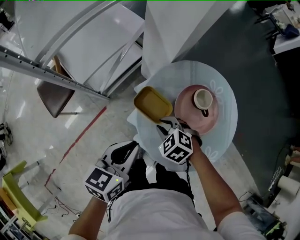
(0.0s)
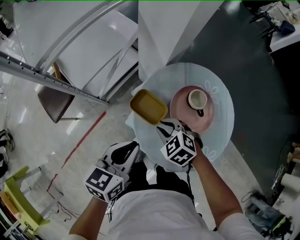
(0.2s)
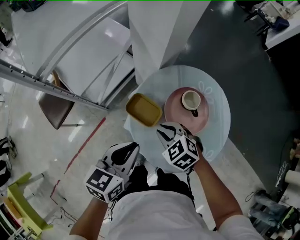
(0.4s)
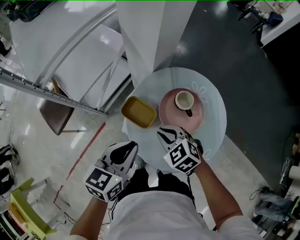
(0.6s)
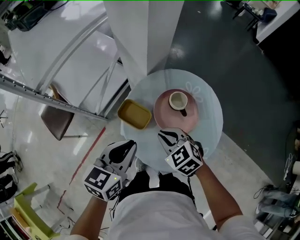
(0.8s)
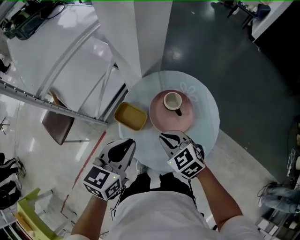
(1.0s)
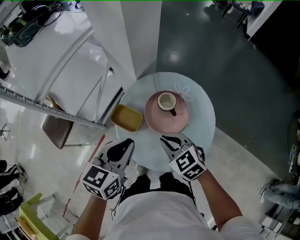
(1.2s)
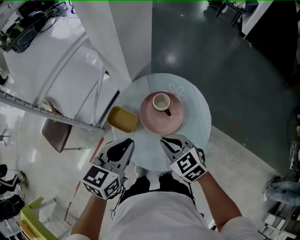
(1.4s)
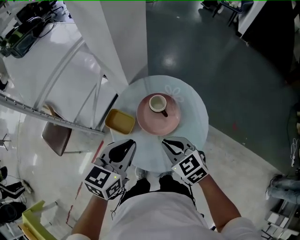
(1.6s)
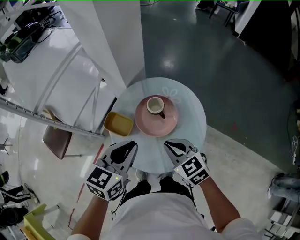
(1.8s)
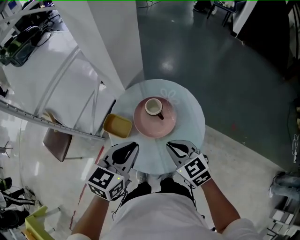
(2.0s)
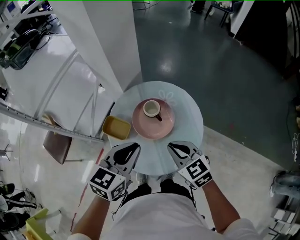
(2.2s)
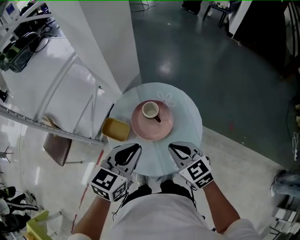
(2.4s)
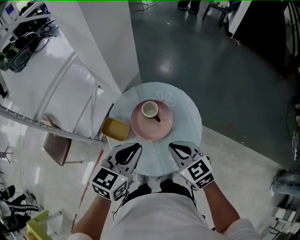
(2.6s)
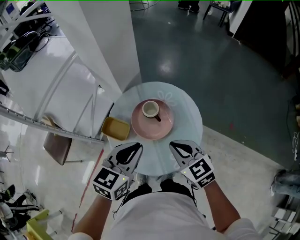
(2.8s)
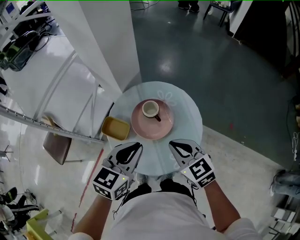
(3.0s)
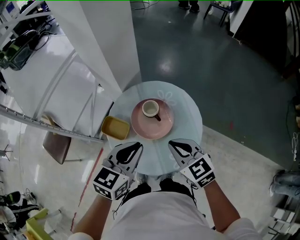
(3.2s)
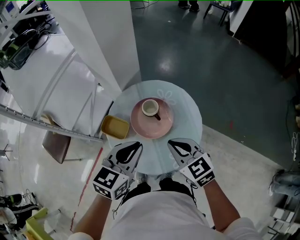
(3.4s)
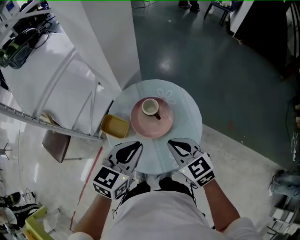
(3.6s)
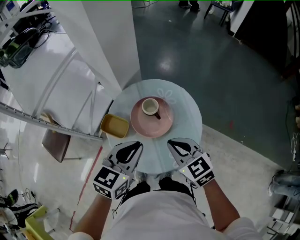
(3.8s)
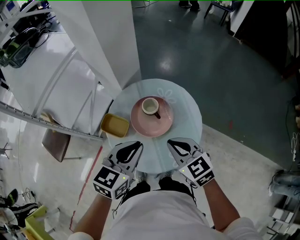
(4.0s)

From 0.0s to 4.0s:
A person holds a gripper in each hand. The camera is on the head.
From 0.0s to 1.4s: The left gripper travels to the right and upward by roughly 20 cm. Meanwhile the right gripper heads to the right, upward and backward, covering roughly 25 cm, and rotates roughly 30 degrees.
From 1.4s to 2.6s: Both grippers travel together to the right, about 10 cm.
From 2.6s to 4.0s: There are only small adjustments of the grippers.

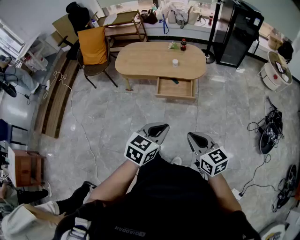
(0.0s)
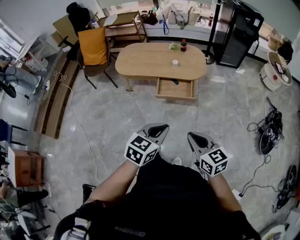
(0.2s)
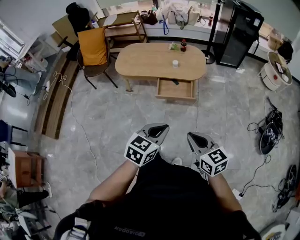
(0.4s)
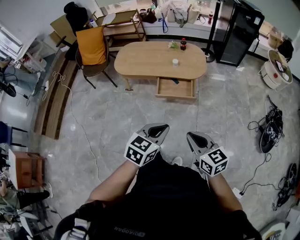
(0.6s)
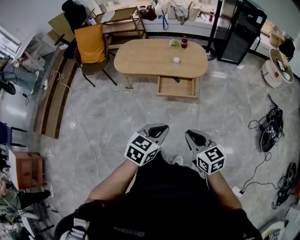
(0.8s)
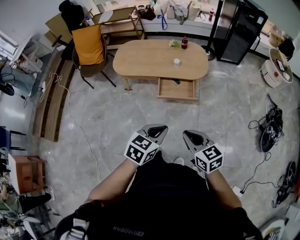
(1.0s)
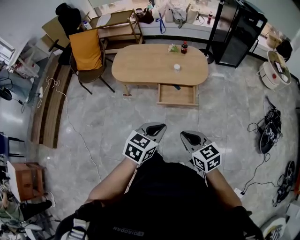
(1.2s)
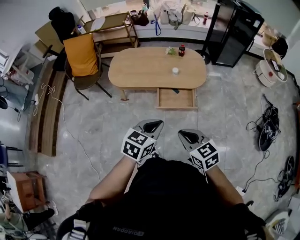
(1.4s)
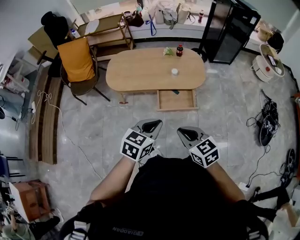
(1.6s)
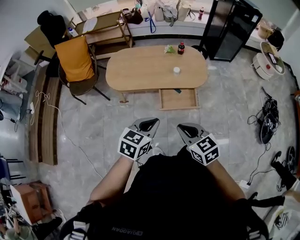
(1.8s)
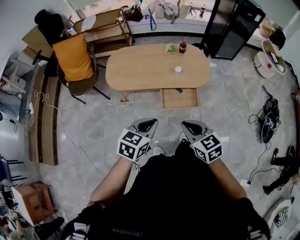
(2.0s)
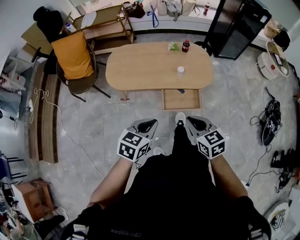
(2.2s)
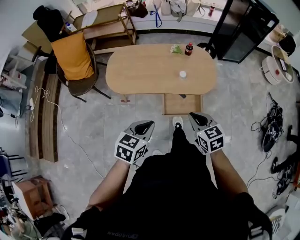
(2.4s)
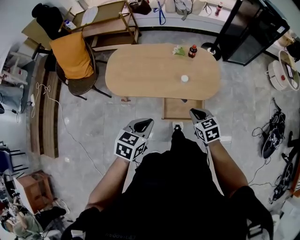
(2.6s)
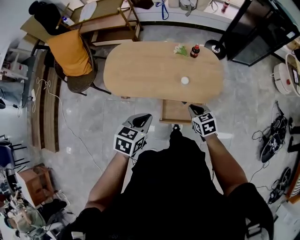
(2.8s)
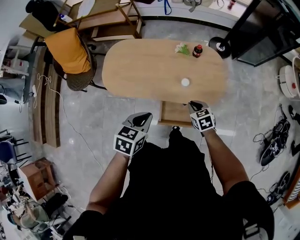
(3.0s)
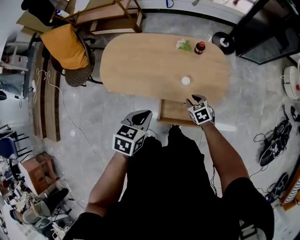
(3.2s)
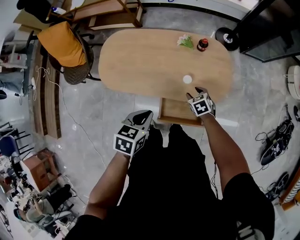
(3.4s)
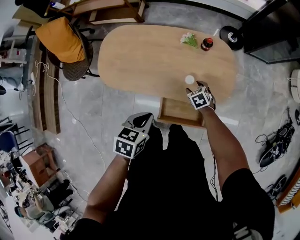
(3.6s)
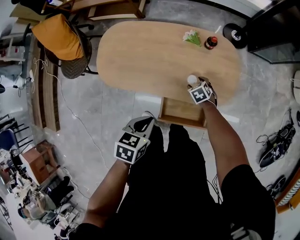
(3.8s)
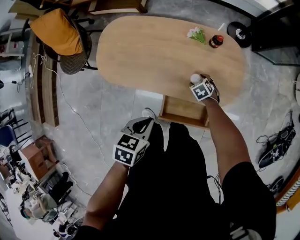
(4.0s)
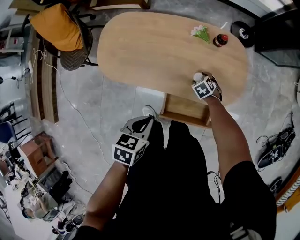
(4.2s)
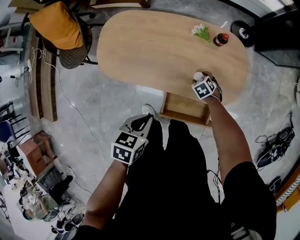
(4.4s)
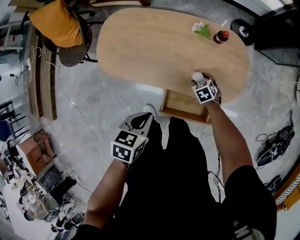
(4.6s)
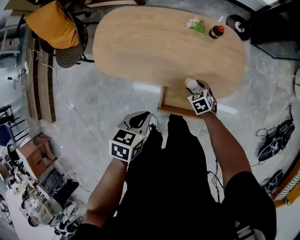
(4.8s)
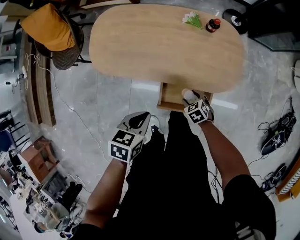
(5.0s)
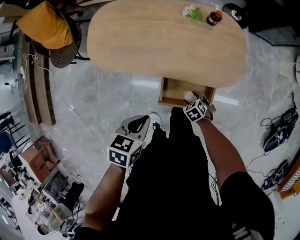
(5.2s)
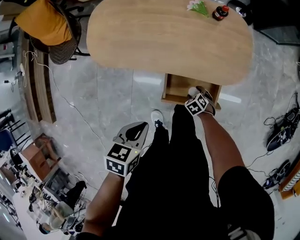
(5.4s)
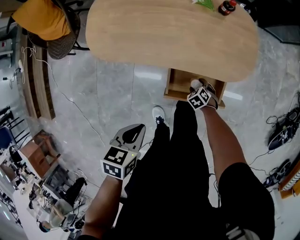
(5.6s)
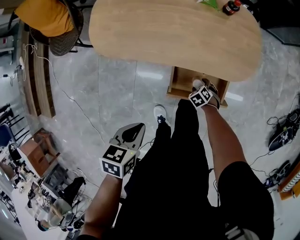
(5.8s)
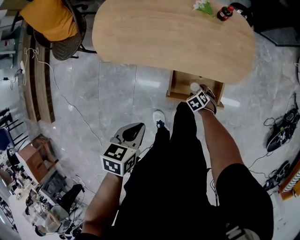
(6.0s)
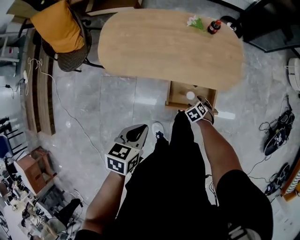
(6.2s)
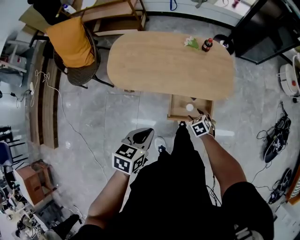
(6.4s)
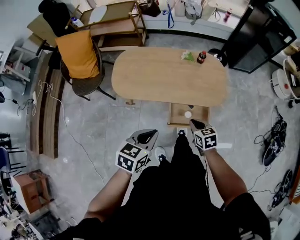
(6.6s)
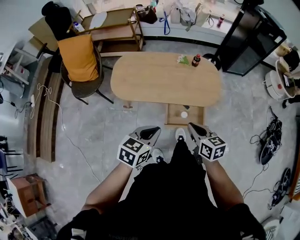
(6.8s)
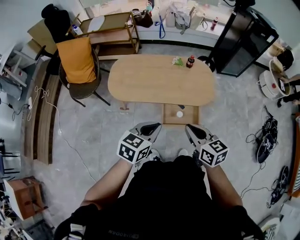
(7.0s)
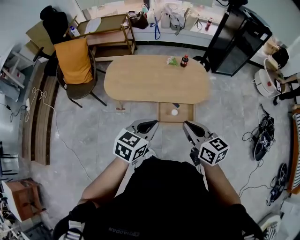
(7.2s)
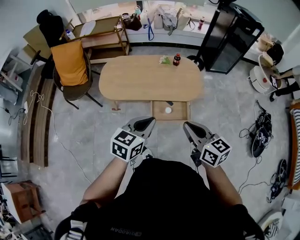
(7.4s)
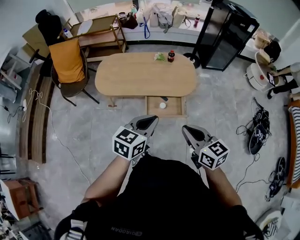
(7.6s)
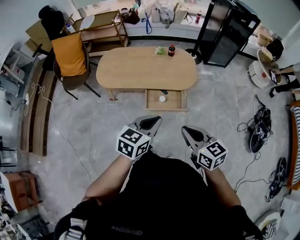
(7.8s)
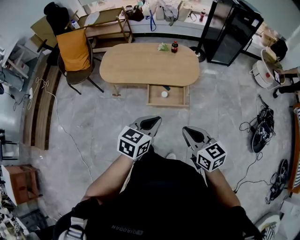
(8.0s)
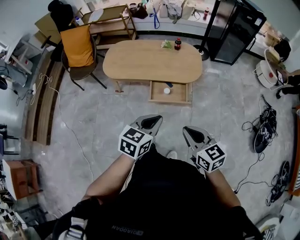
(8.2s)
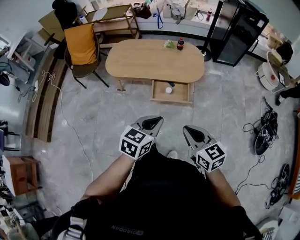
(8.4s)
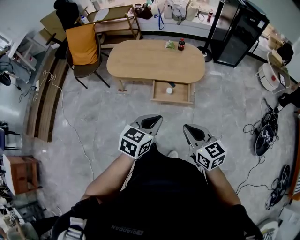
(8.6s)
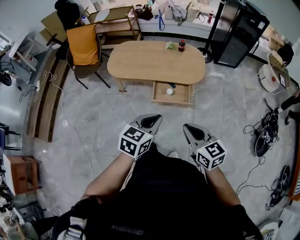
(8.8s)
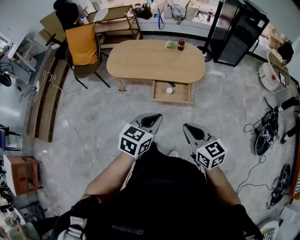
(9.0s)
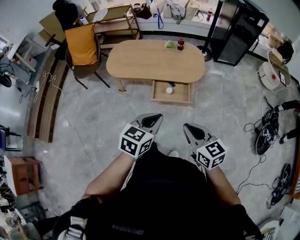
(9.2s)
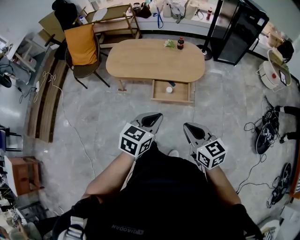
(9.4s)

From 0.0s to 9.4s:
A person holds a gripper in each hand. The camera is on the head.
From 0.0s to 1.6s: The grippers both shift forward and to the left by roughly 25 cm.
From 1.6s to 3.2s: The right gripper moves forward and downward, approximately 50 cm, rotates roughly 30 degrees, and opens up. Meanwhile the left gripper moves forward, roughly 35 cm, and swivels some 20 degrees.
From 3.2s to 4.8s: The grippers both shift downward by approximately 10 cm. The right gripper opens.
From 4.8s to 6.2s: The left gripper moves approximately 15 cm. Meanwhile the right gripper shifts by about 15 cm.
From 6.2s to 7.8s: The left gripper moves approximately 30 cm, and changes its angle by about 30 degrees. Meanwhile the right gripper goes about 50 cm upward, tips its fingers upward by approximately 60 degrees, and closes its fingers.
From 7.8s to 9.4s: Both grippers move backward, roughly 5 cm.

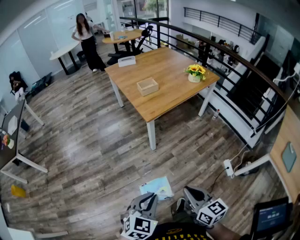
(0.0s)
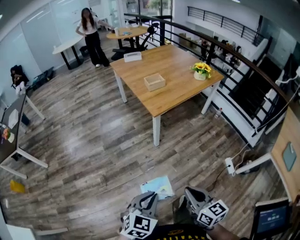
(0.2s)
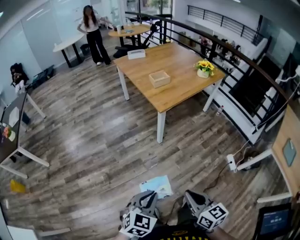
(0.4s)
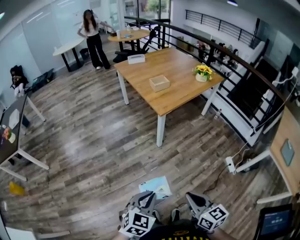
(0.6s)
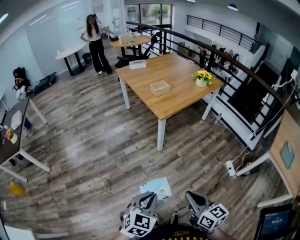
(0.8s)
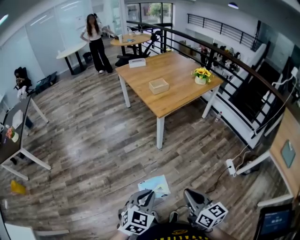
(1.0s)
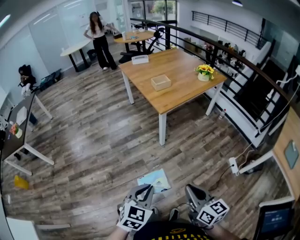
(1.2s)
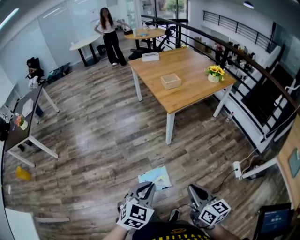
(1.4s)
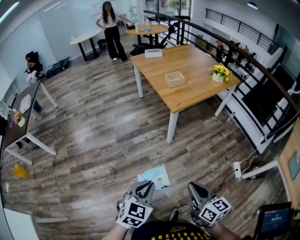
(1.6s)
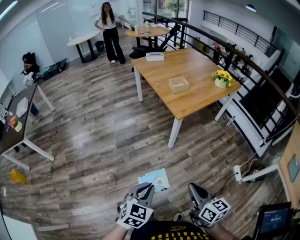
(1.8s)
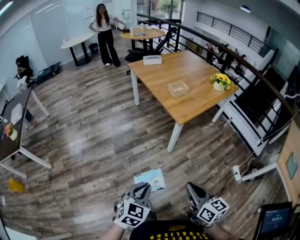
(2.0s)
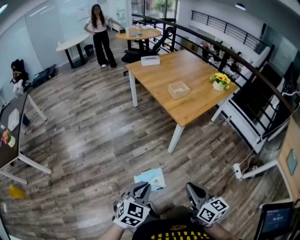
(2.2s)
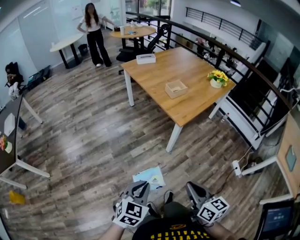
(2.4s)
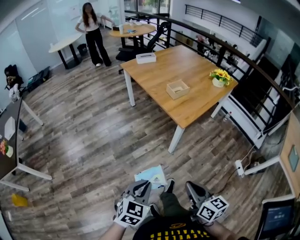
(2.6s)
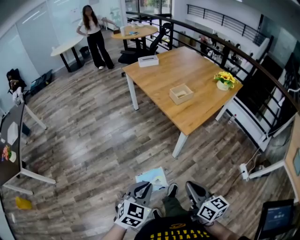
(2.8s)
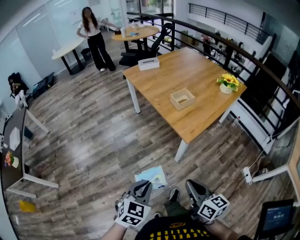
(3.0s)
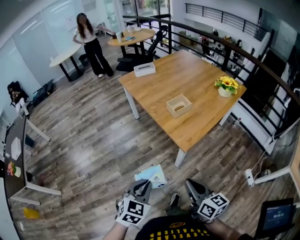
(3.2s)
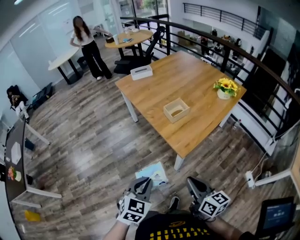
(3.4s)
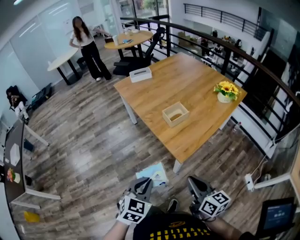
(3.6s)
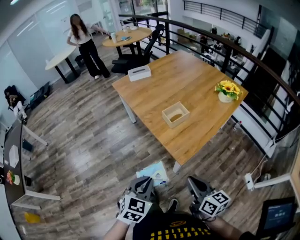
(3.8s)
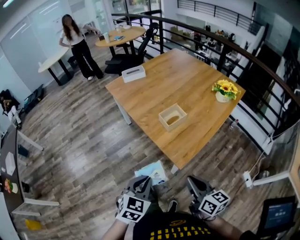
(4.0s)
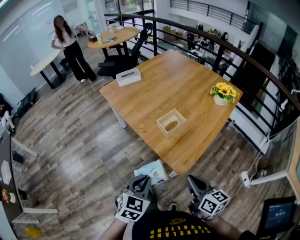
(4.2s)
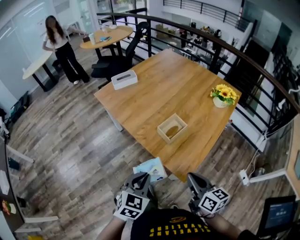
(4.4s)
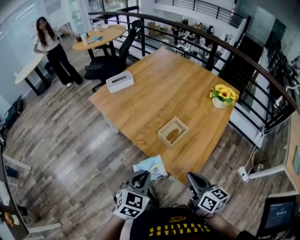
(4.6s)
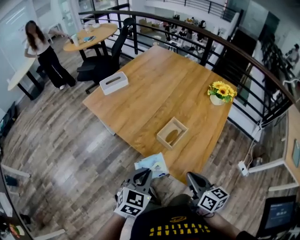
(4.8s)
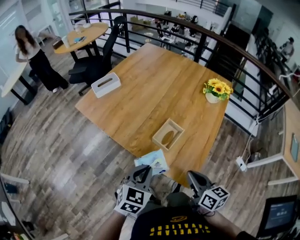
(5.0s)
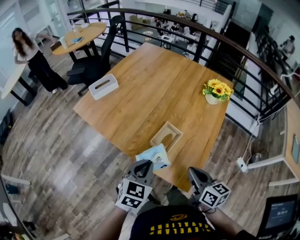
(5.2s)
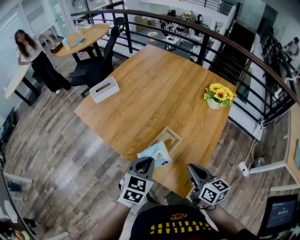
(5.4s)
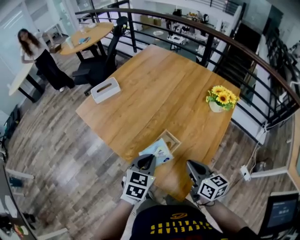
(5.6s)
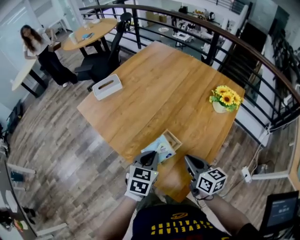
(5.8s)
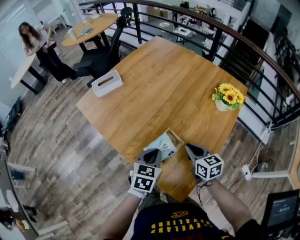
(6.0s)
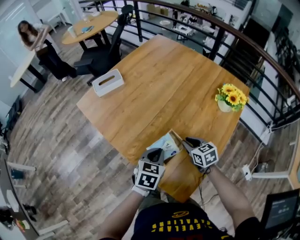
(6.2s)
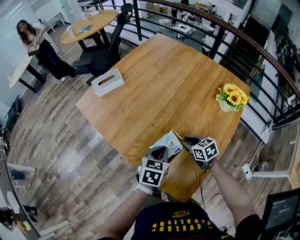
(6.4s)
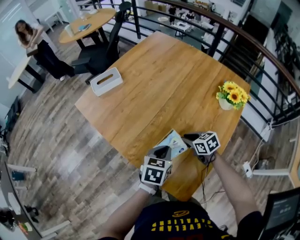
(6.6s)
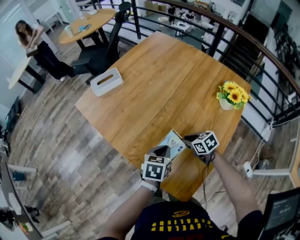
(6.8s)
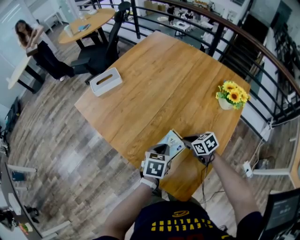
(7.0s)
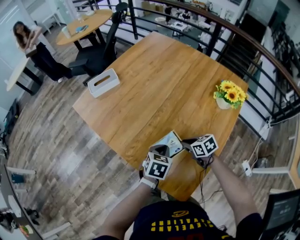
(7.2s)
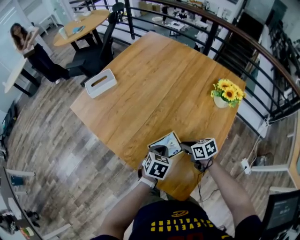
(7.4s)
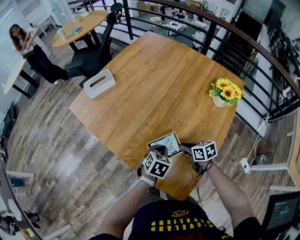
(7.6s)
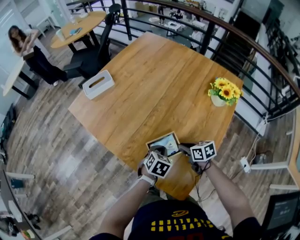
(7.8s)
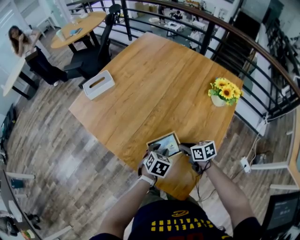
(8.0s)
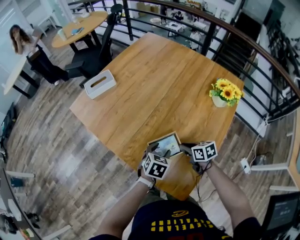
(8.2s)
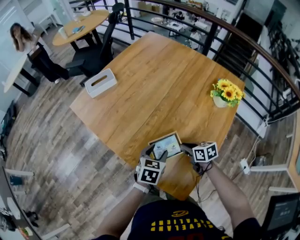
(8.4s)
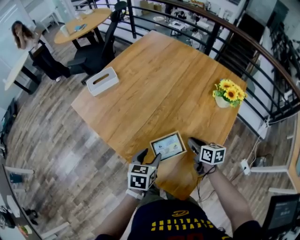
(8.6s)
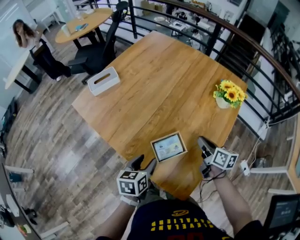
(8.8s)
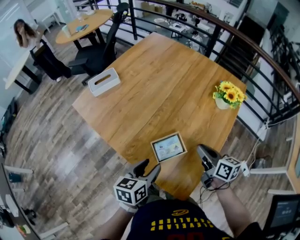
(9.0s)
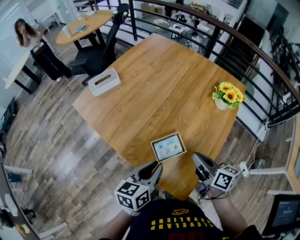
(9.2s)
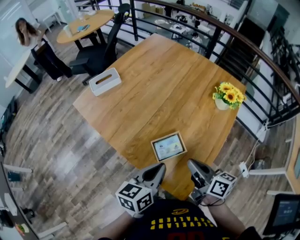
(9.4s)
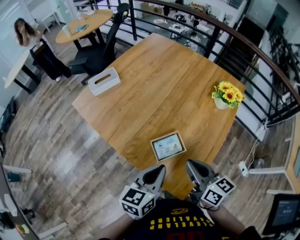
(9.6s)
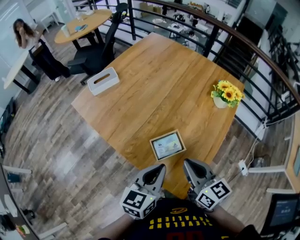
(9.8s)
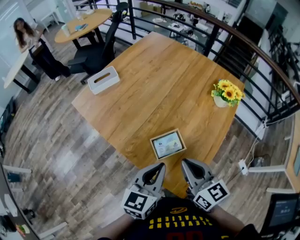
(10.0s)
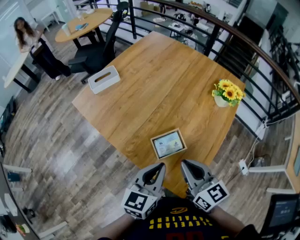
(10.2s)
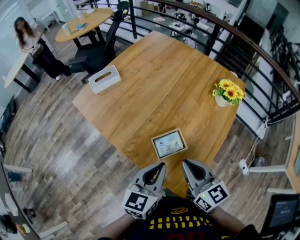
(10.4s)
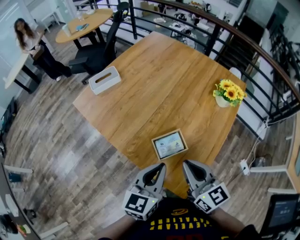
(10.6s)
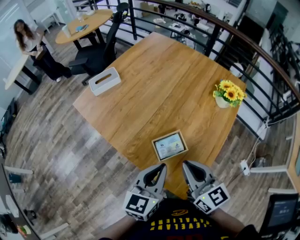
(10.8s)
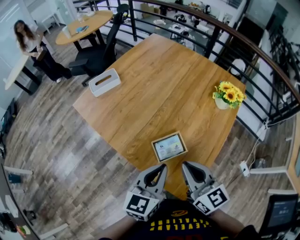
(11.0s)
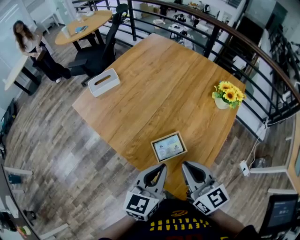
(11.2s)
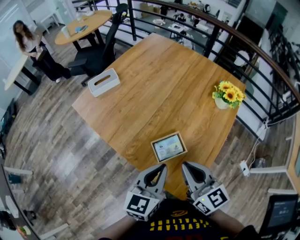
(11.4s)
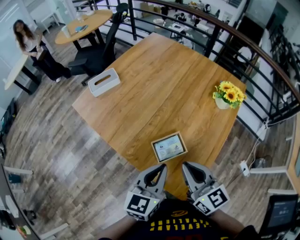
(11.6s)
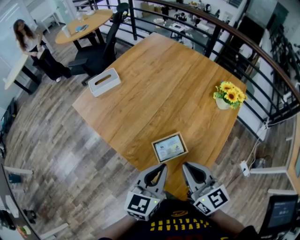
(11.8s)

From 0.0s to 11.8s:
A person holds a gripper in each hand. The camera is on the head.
From 0.0s to 1.4s: The right gripper travels to the left and backward by roughly 10 cm; the left gripper shifts some 10 cm to the left.
From 1.4s to 3.0s: The grippers both shift forward and to the left by some 35 cm.
From 3.0s to 4.4s: Both grippers move forward, about 30 cm.
From 4.4s to 6.0s: The grippers both shift forward by some 25 cm.
From 6.0s to 7.4s: Both grippers travel together downward, about 10 cm. The right gripper rotates some 30 degrees.
From 7.4s to 8.8s: The left gripper travels to the left and upward by approximately 10 cm, turns by approximately 30 degrees, and opens. The right gripper heads upward and to the right, covering approximately 15 cm, and changes its angle by approximately 40 degrees.
From 8.8s to 10.4s: The left gripper travels upward by approximately 10 cm, rotates approximately 30 degrees, and closes; the right gripper heads upward, backward and to the left, covering about 20 cm, and swivels some 30 degrees.
From 10.4s to 11.8s: The two grippers keep their place.
